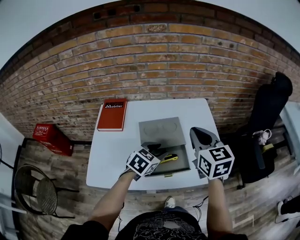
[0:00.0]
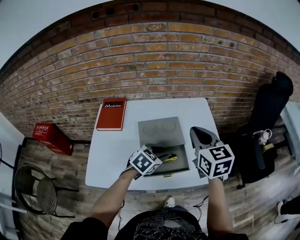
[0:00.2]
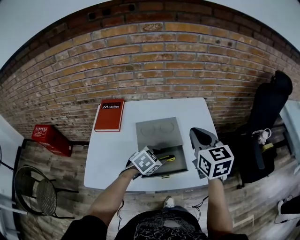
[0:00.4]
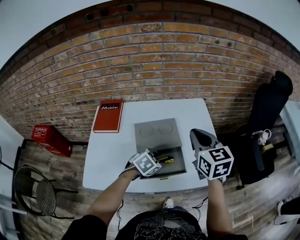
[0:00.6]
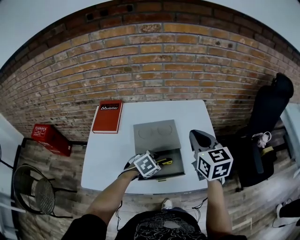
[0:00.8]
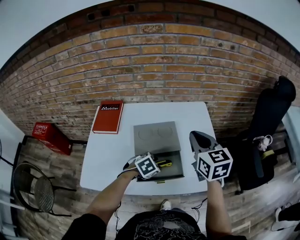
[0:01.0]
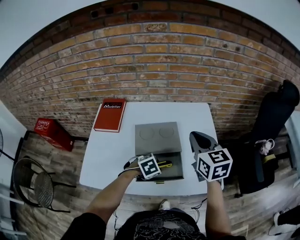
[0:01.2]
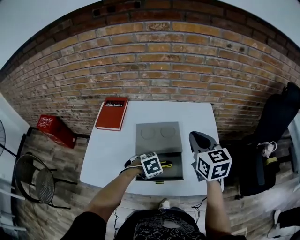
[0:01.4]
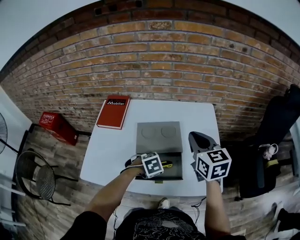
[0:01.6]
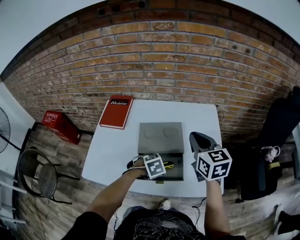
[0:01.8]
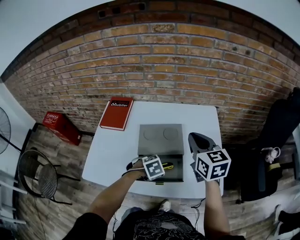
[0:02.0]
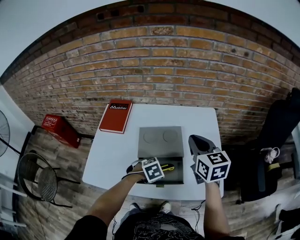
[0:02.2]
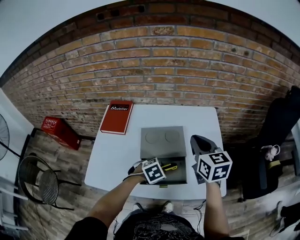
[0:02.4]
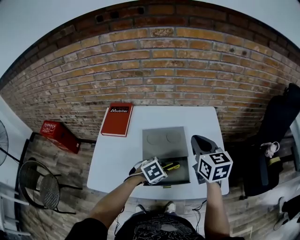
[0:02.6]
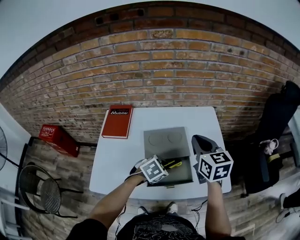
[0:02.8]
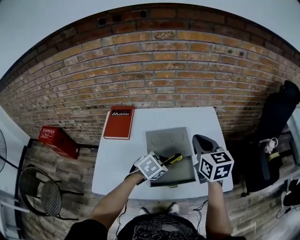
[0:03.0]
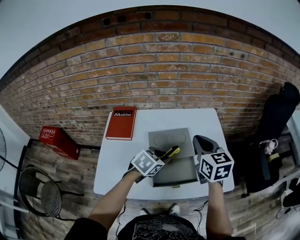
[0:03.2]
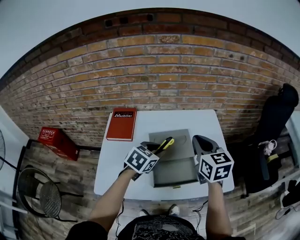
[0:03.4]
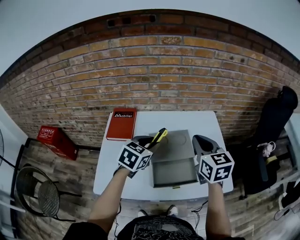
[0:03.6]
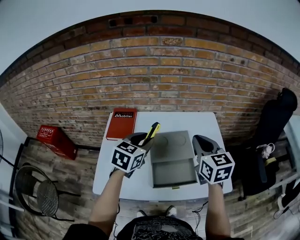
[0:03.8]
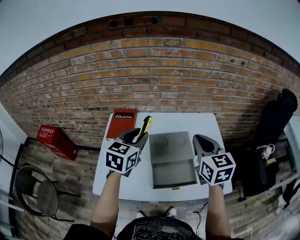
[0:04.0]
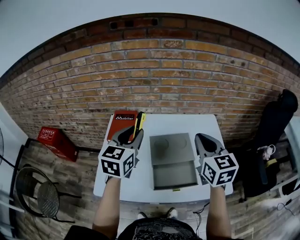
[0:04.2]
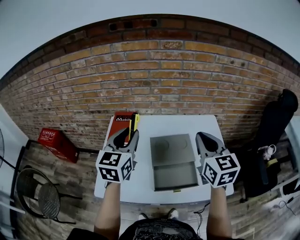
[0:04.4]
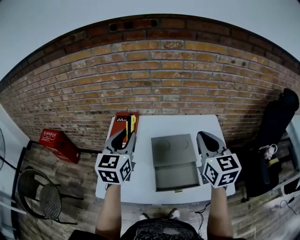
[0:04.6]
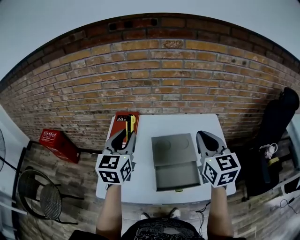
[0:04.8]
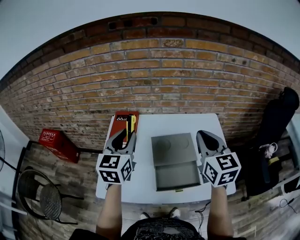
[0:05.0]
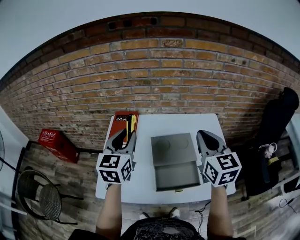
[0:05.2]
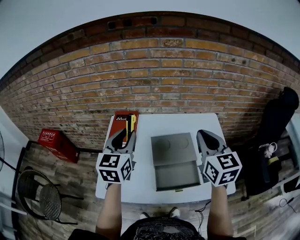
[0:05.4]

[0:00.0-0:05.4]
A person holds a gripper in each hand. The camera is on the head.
0:00.0 to 0:01.4: The left gripper goes about 10 cm downward, and tips its fingers downward by some 30 degrees. The right gripper travels forward by roughly 5 cm.
0:01.4 to 0:02.8: The left gripper is displaced upward by about 5 cm.
0:02.8 to 0:04.0: The right gripper goes roughly 5 cm upward; the left gripper travels upward and to the left by some 25 cm, and tips its fingers upward by roughly 40 degrees.
0:04.0 to 0:05.4: The left gripper is displaced to the left by approximately 5 cm.

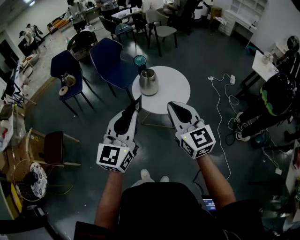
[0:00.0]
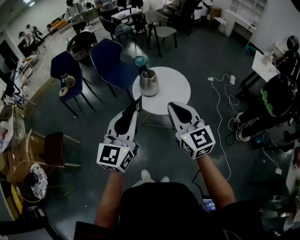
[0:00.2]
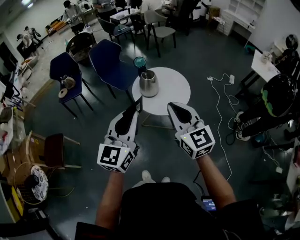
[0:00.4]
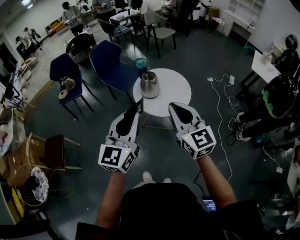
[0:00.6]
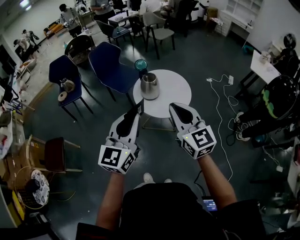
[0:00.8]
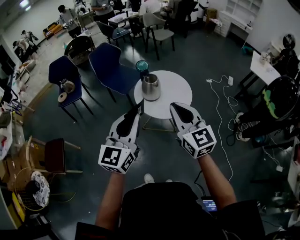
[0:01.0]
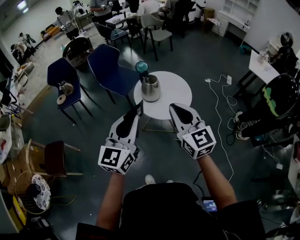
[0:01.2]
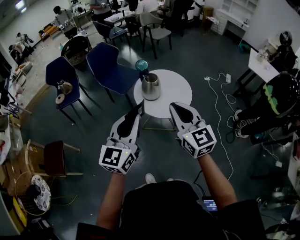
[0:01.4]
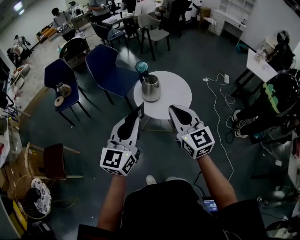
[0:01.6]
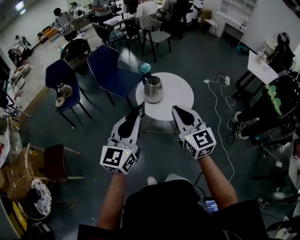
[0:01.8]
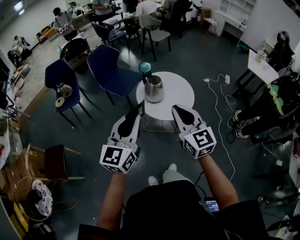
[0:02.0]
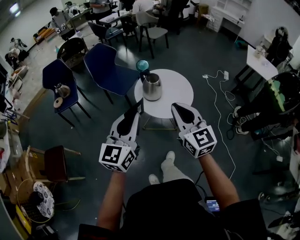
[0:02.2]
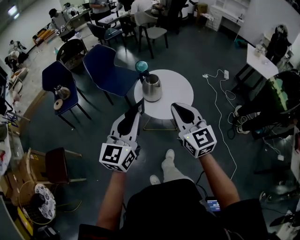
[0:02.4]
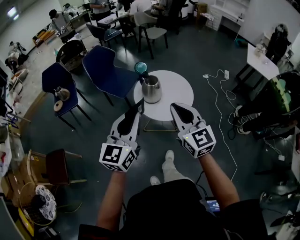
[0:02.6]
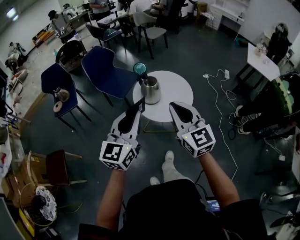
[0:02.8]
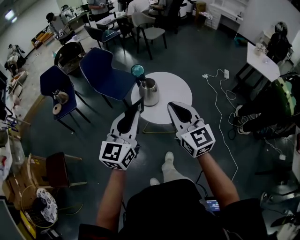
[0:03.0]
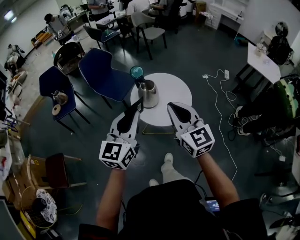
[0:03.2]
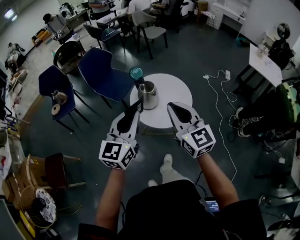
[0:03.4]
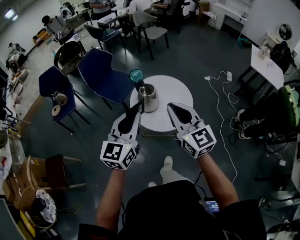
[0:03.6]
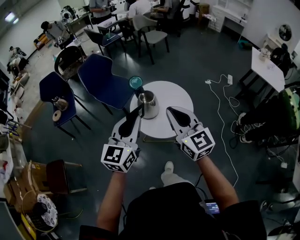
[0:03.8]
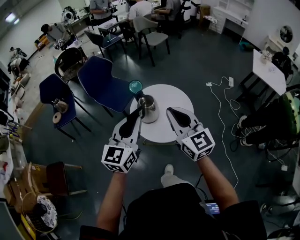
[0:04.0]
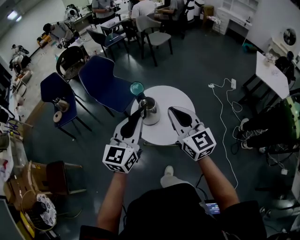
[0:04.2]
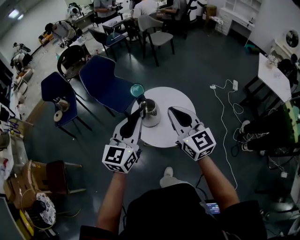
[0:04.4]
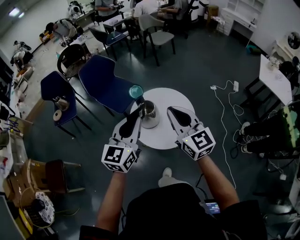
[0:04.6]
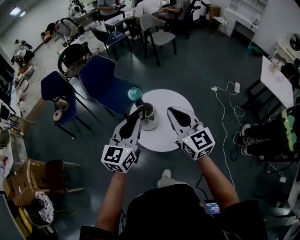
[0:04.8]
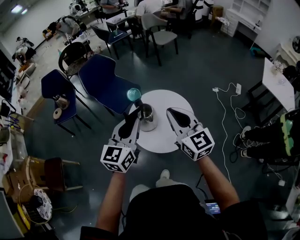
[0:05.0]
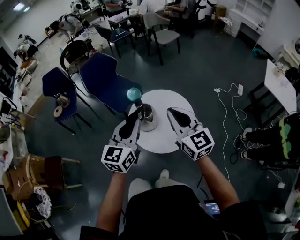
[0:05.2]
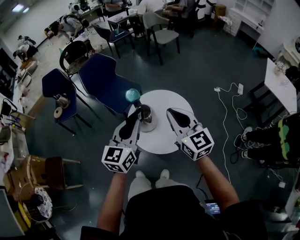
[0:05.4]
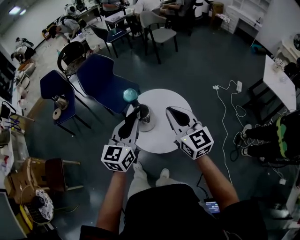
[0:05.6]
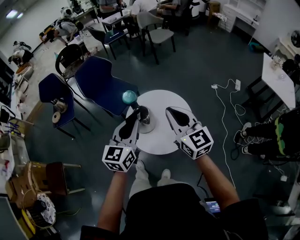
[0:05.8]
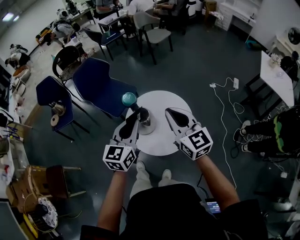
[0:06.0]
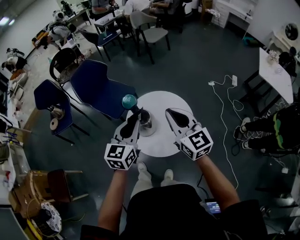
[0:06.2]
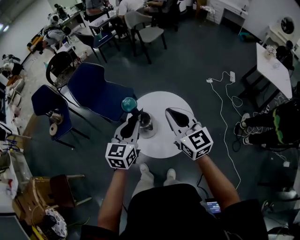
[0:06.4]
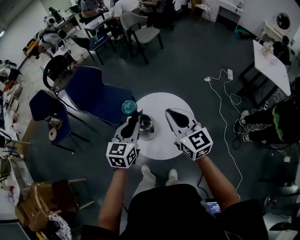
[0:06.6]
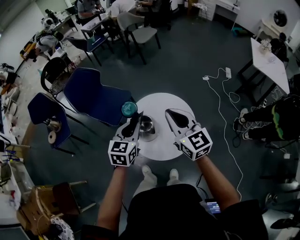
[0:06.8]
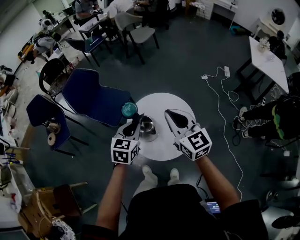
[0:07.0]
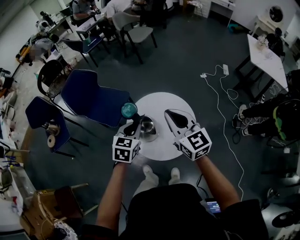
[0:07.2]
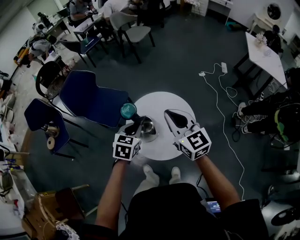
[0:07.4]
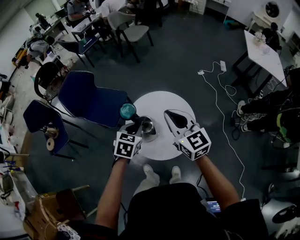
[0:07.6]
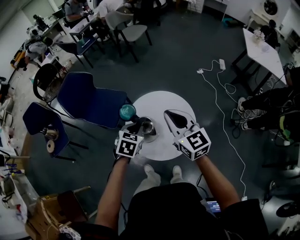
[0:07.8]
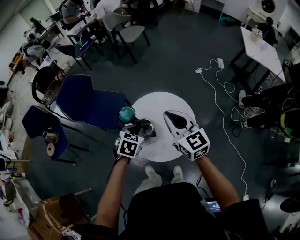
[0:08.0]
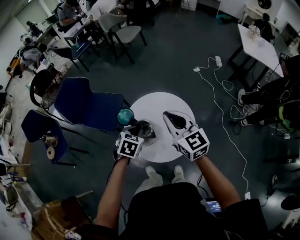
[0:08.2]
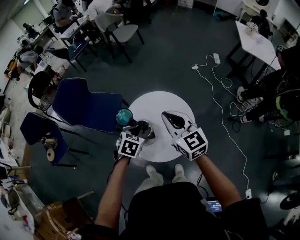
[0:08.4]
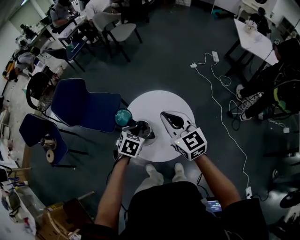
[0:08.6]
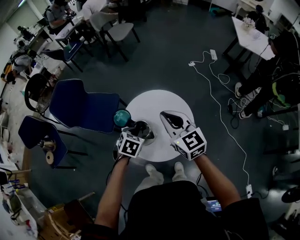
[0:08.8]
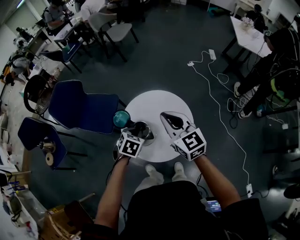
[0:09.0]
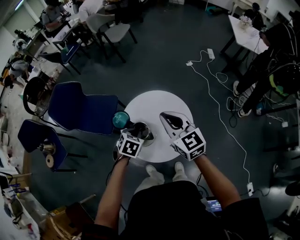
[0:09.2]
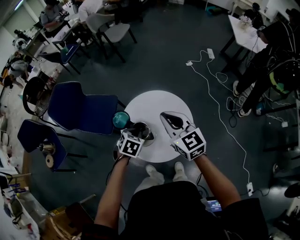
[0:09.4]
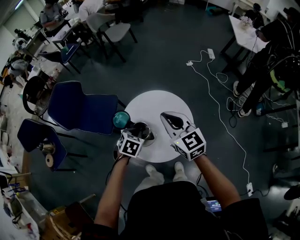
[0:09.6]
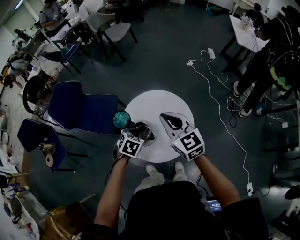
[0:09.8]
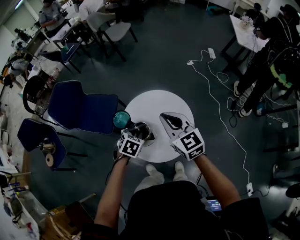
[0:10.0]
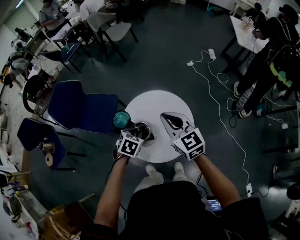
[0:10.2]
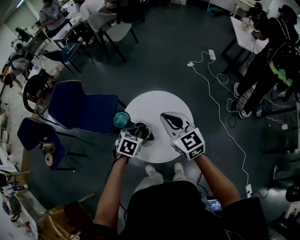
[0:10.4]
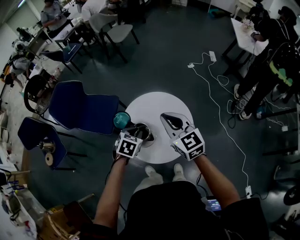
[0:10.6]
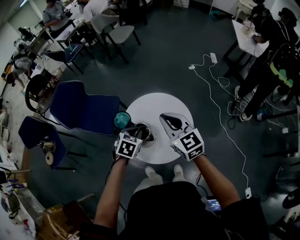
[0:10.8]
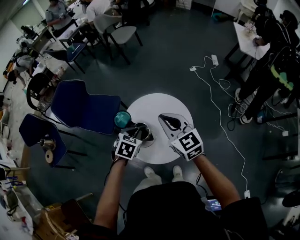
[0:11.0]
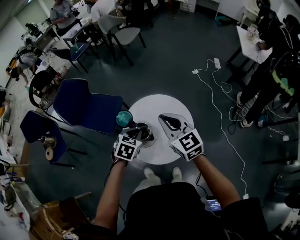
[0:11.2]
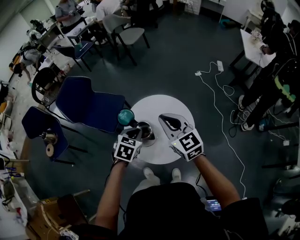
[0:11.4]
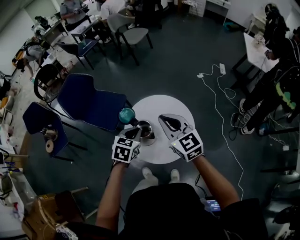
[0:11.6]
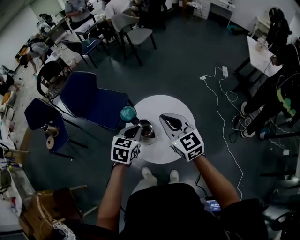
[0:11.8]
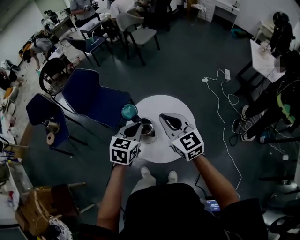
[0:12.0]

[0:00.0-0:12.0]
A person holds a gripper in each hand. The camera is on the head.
0:00.0 to 0:01.6: The grippers both shift to the left by about 10 cm.
0:01.6 to 0:03.0: Both grippers move forward, some 10 cm.
0:03.0 to 0:04.4: The grippers both shift forward by approximately 20 cm.
0:04.4 to 0:06.0: The left gripper is displaced forward and downward by about 10 cm; the right gripper is displaced forward and to the right by some 10 cm.
0:06.0 to 0:07.6: The left gripper shifts roughly 15 cm downward and forward, and points its fingers about 40 degrees further downward. Meanwhile the right gripper goes roughly 5 cm forward.
0:07.6 to 0:09.0: The right gripper changes place by roughly 5 cm, while the left gripper travels downward by about 10 cm.
0:09.0 to 0:10.4: The grippers make only small movements.
0:10.4 to 0:12.0: The right gripper changes place by about 5 cm. The left gripper heads upward, covering approximately 15 cm, and changes its angle by approximately 30 degrees.

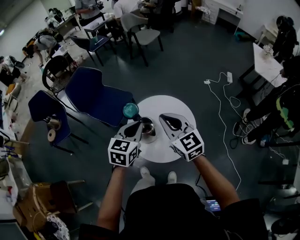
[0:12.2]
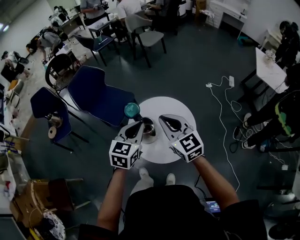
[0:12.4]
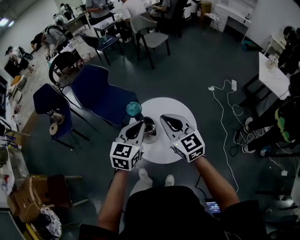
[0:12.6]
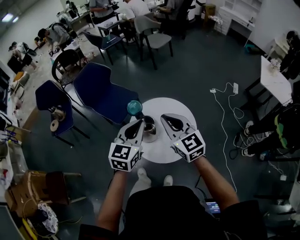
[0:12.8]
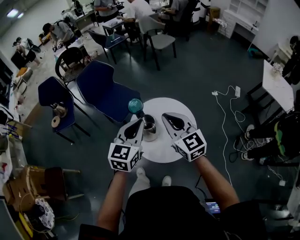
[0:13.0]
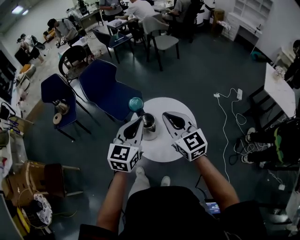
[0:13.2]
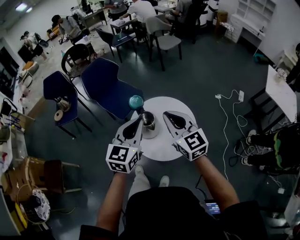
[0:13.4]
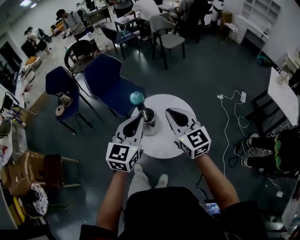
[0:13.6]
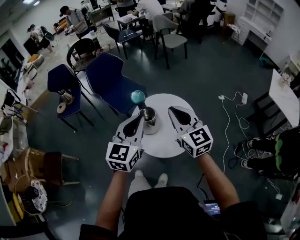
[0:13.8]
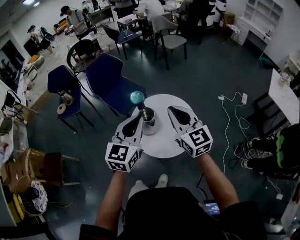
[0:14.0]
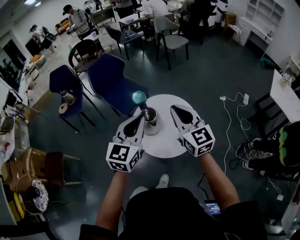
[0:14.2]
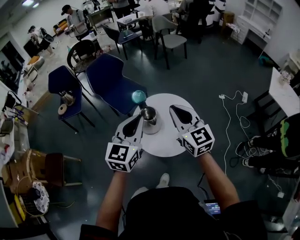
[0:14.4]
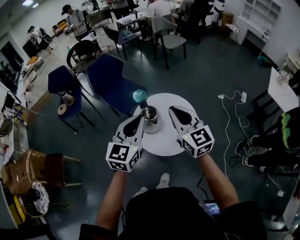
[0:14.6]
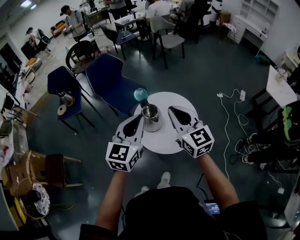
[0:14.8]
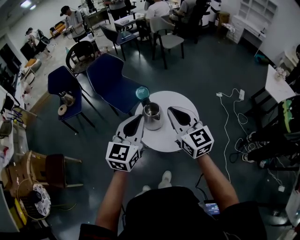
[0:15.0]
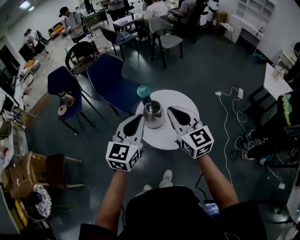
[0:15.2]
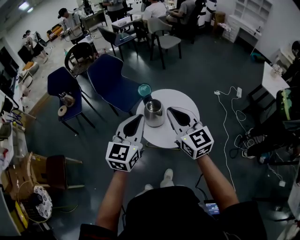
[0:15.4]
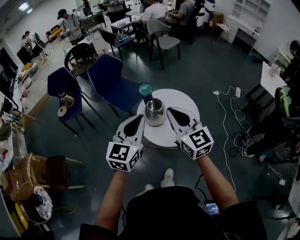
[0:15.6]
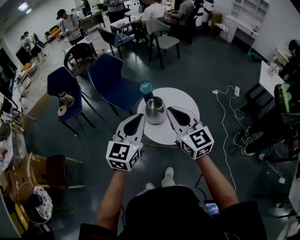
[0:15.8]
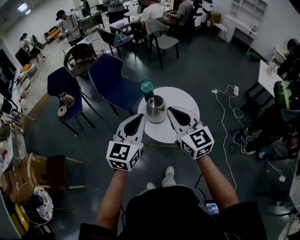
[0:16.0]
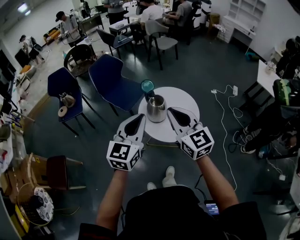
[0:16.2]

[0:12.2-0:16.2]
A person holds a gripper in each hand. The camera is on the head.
0:12.2 to 0:13.6: The left gripper heads backward and upward, covering about 15 cm, and rotates roughly 20 degrees. The right gripper travels backward by approximately 5 cm.
0:13.6 to 0:14.8: The left gripper moves approximately 5 cm. Meanwhile the right gripper shifts by some 5 cm.
0:14.8 to 0:16.2: Both grippers move backward and to the left, approximately 15 cm.

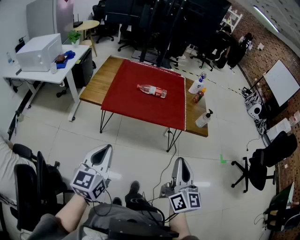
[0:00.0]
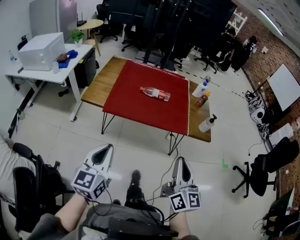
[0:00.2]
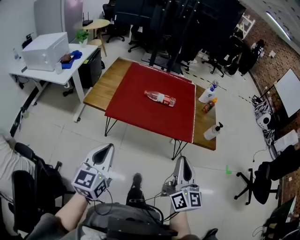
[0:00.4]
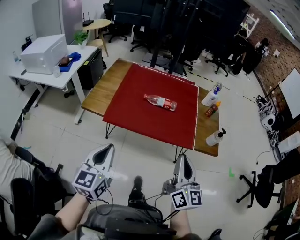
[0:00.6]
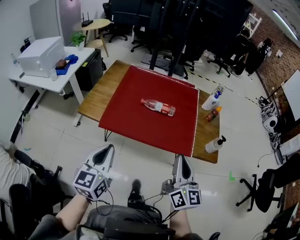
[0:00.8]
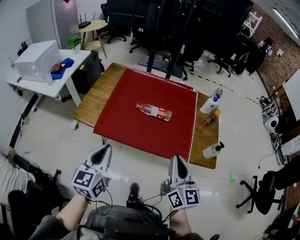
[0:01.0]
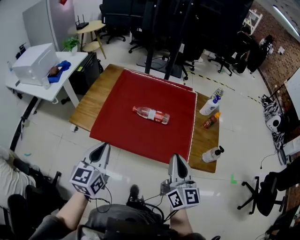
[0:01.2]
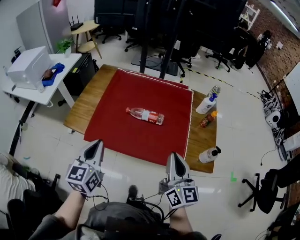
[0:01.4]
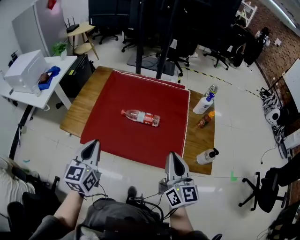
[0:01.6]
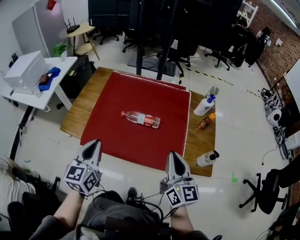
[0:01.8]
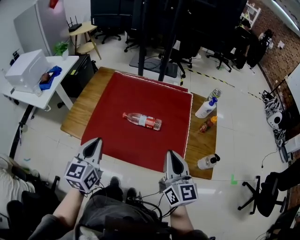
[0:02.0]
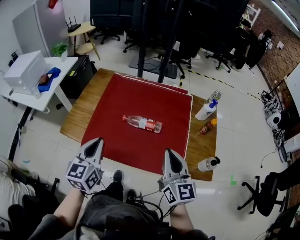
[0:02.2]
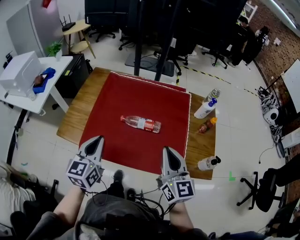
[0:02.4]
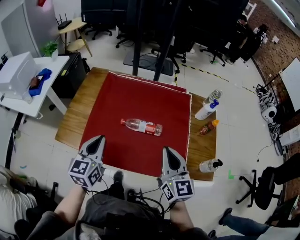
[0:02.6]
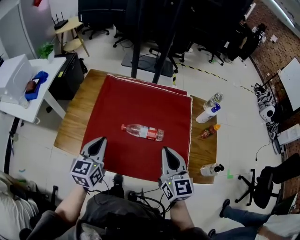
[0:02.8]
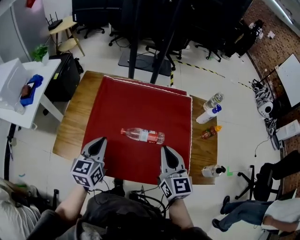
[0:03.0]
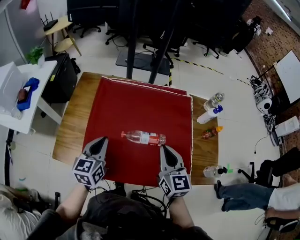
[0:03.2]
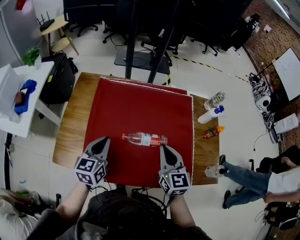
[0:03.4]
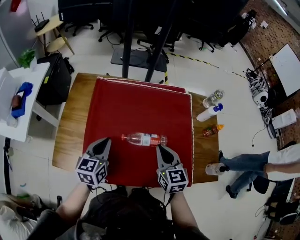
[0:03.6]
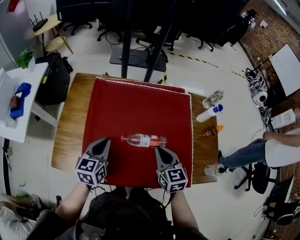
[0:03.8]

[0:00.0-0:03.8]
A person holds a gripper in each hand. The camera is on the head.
0:00.0 to 0:01.2: Both grippers travel together forward, some 35 cm.
0:01.2 to 0:02.6: The two grippers go about 20 cm forward.
0:02.6 to 0:03.8: The right gripper travels forward, downward and to the left by roughly 20 cm, and rotates some 20 degrees, while the left gripper travels forward and downward by some 20 cm.
